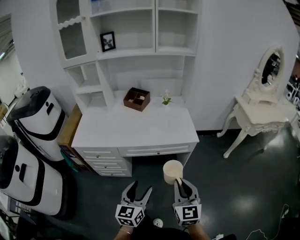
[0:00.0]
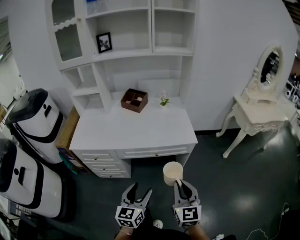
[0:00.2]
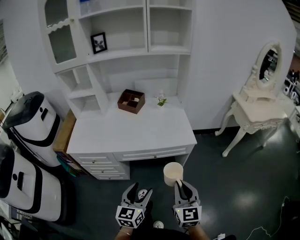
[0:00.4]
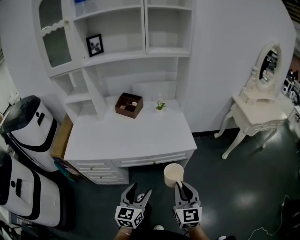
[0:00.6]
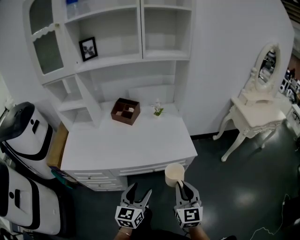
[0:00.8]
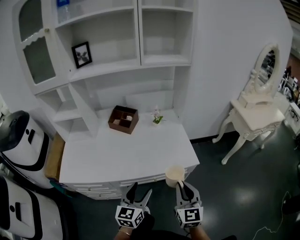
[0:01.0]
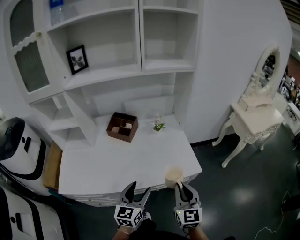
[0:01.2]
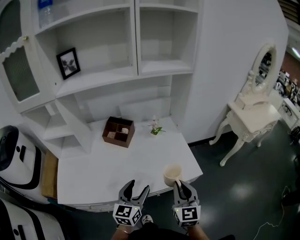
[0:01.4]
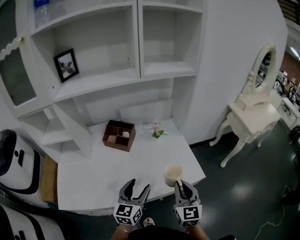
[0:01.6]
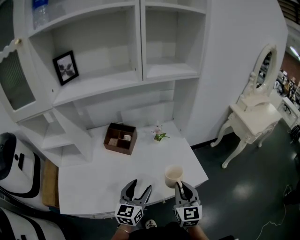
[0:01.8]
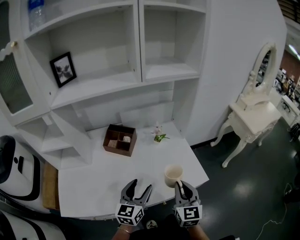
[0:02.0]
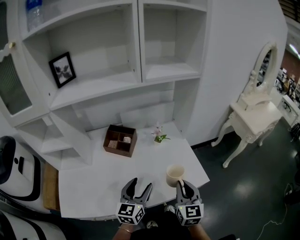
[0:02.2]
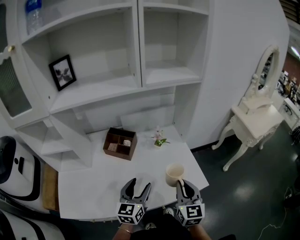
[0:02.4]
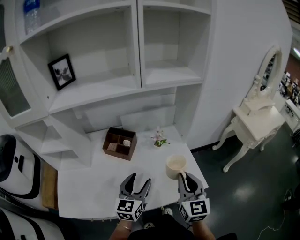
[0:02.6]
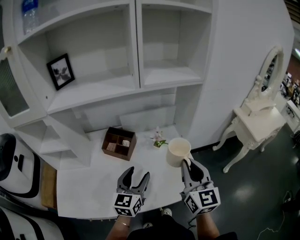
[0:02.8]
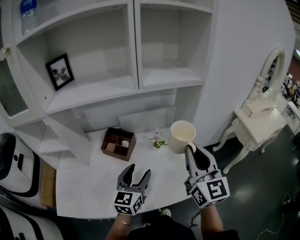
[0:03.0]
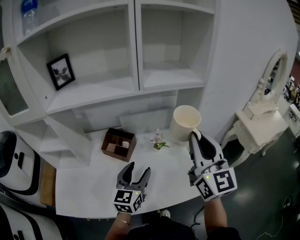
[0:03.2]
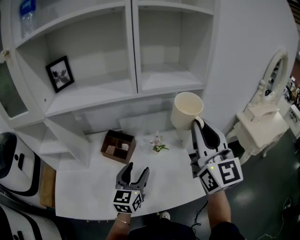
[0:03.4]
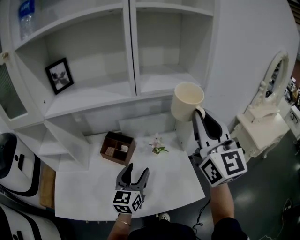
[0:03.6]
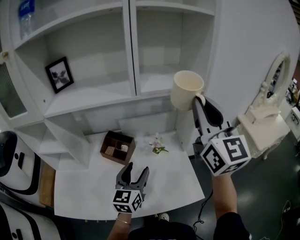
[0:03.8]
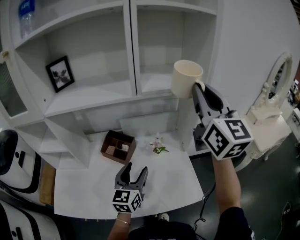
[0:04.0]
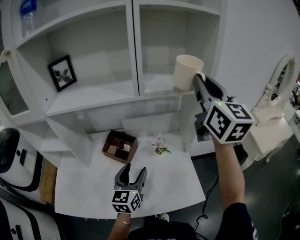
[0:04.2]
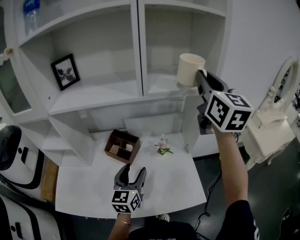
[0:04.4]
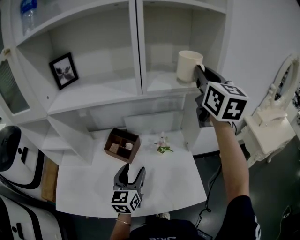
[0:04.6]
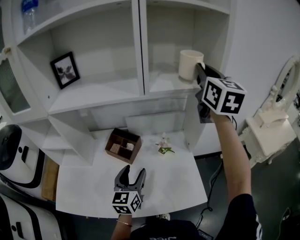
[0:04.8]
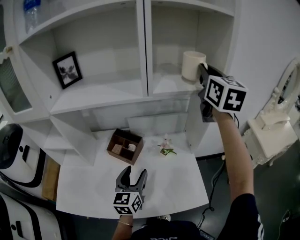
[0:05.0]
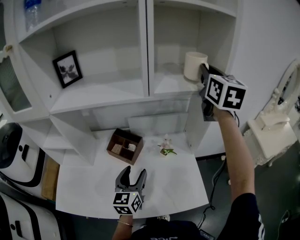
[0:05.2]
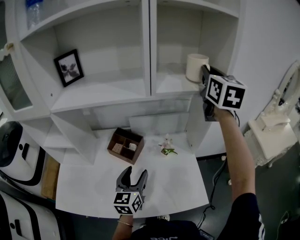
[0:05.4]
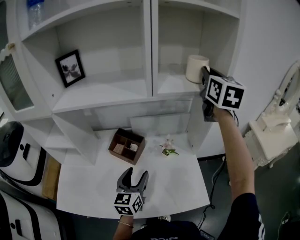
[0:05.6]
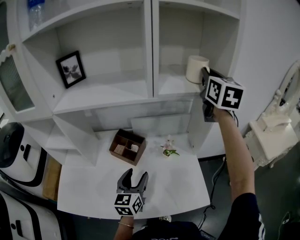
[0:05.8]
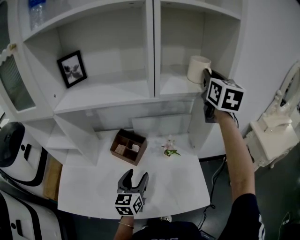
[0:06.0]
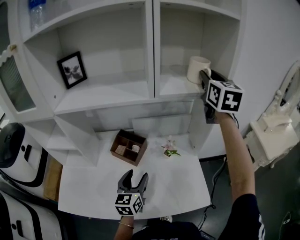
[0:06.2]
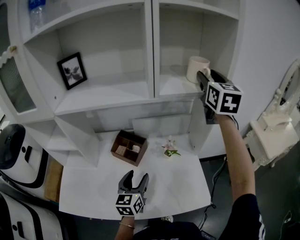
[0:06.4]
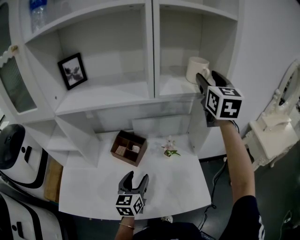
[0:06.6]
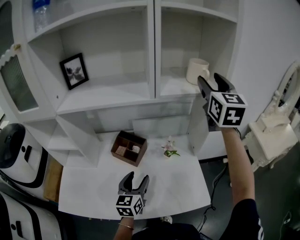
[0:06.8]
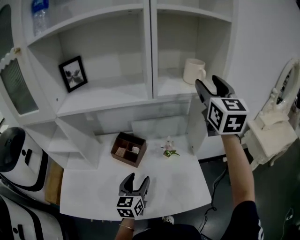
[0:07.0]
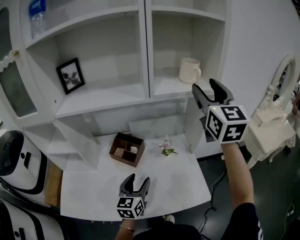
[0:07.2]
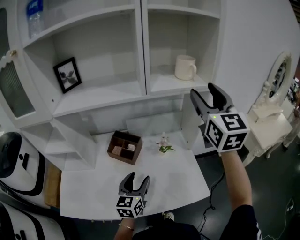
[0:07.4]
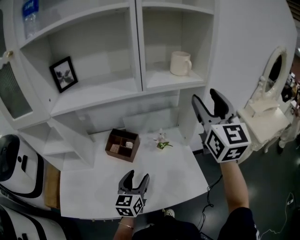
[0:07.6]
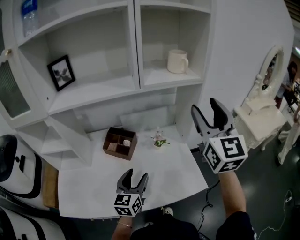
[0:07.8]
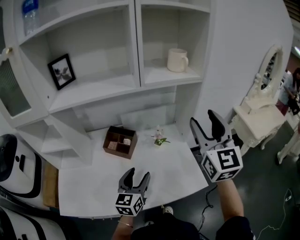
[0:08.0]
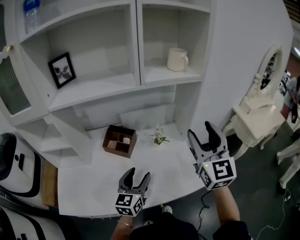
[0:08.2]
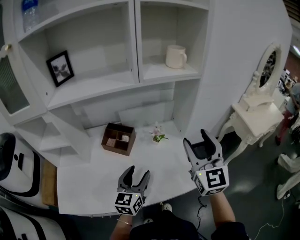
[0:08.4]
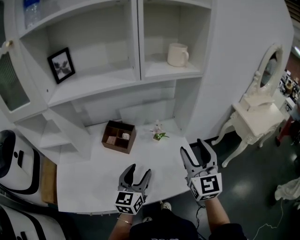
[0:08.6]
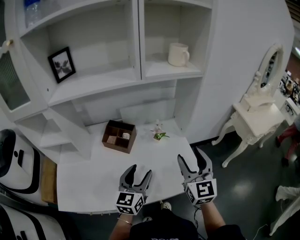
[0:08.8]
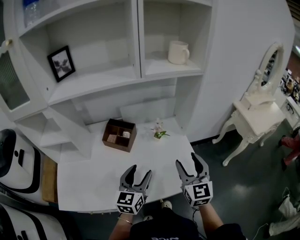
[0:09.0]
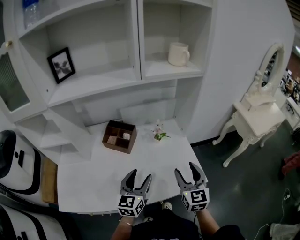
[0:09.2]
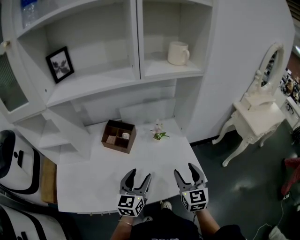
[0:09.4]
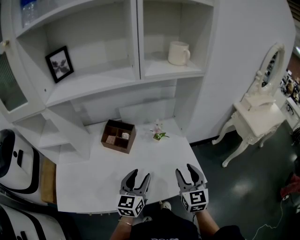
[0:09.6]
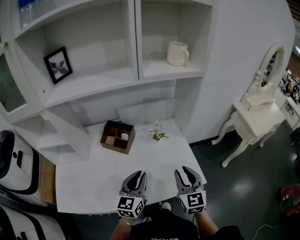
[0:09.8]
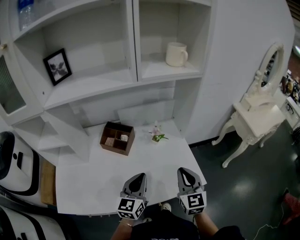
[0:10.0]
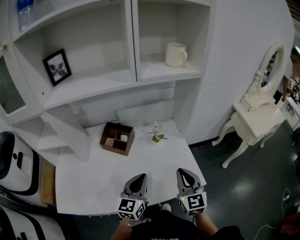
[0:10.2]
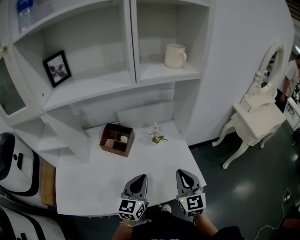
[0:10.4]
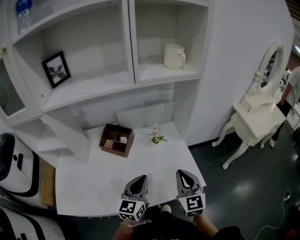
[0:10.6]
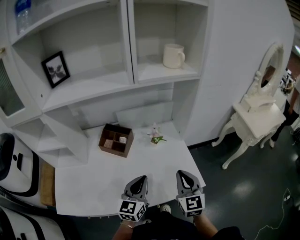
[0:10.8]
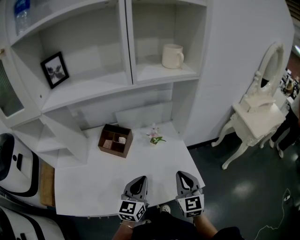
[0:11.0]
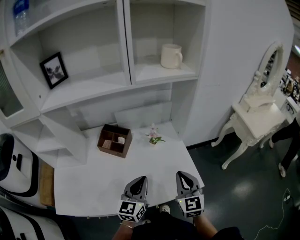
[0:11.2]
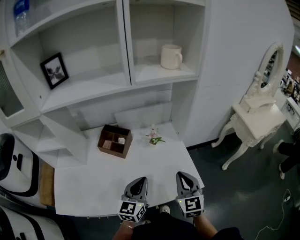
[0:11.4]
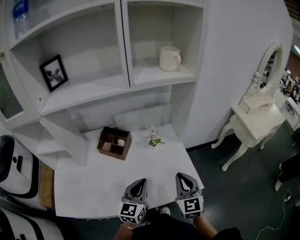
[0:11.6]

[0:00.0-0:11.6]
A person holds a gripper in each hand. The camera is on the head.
0:00.0 to 0:01.4: Both grippers move forward, approximately 30 cm.
0:01.4 to 0:02.8: The grippers both shift forward and upward by roughly 15 cm.
0:02.8 to 0:04.4: The left gripper goes approximately 5 cm forward; the right gripper is displaced upward and forward by about 35 cm.
0:04.4 to 0:05.8: The right gripper travels forward by approximately 10 cm.
0:05.8 to 0:07.2: The right gripper goes roughly 10 cm backward, and opens up.
0:07.2 to 0:08.8: The left gripper ends up roughly 5 cm from where it was; the right gripper is displaced downward and backward by about 30 cm.
0:08.8 to 0:10.2: The left gripper closes its fingers. Meanwhile the right gripper is displaced downward by some 10 cm, and closes.
0:10.2 to 0:11.6: The grippers make only small movements.

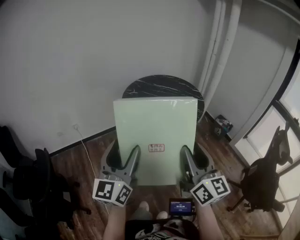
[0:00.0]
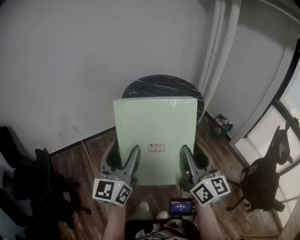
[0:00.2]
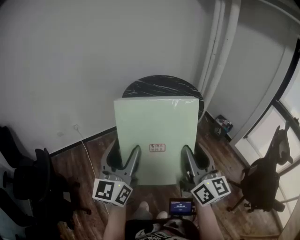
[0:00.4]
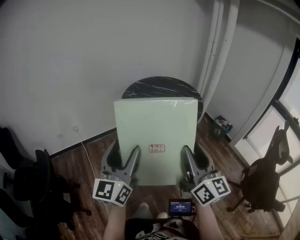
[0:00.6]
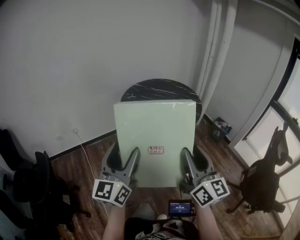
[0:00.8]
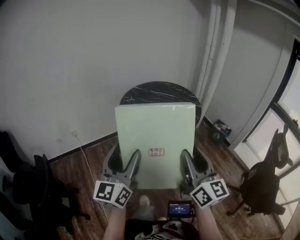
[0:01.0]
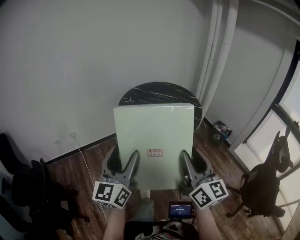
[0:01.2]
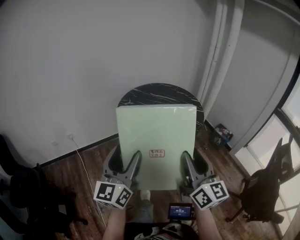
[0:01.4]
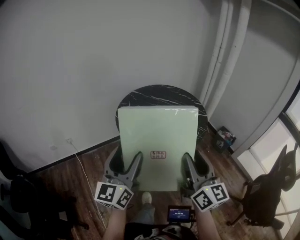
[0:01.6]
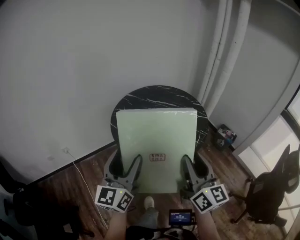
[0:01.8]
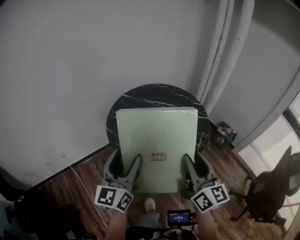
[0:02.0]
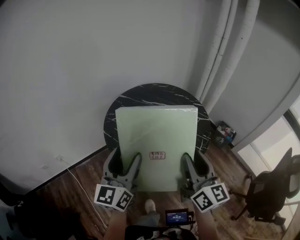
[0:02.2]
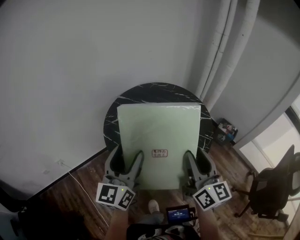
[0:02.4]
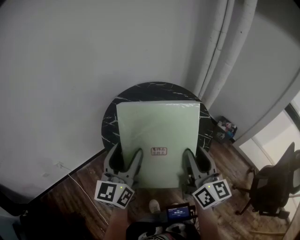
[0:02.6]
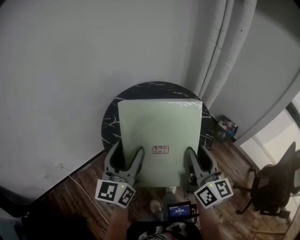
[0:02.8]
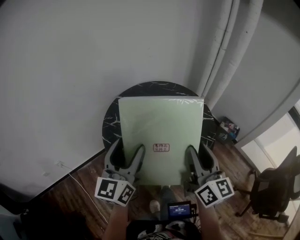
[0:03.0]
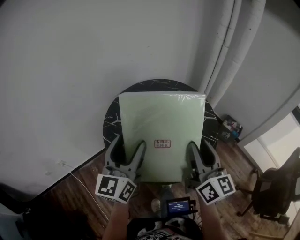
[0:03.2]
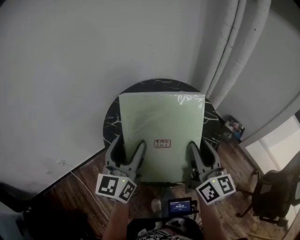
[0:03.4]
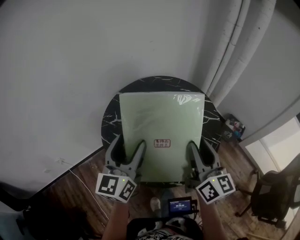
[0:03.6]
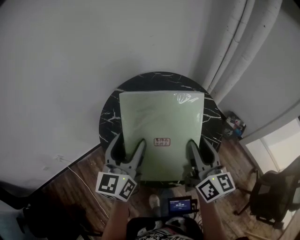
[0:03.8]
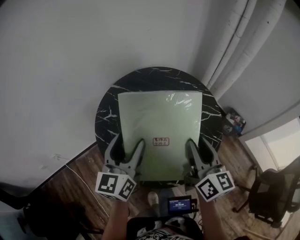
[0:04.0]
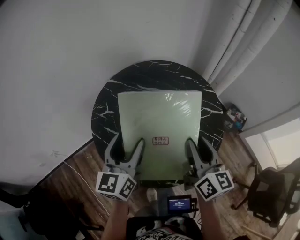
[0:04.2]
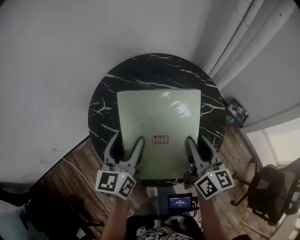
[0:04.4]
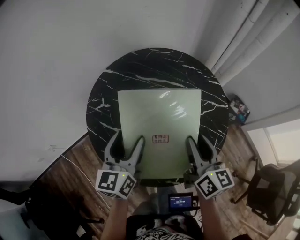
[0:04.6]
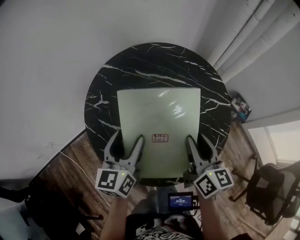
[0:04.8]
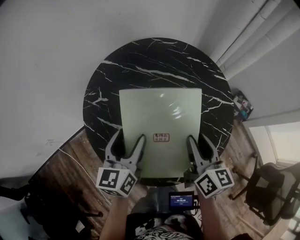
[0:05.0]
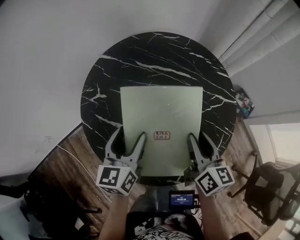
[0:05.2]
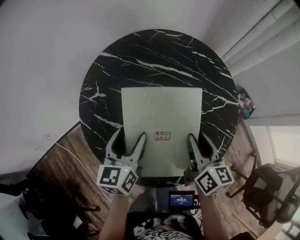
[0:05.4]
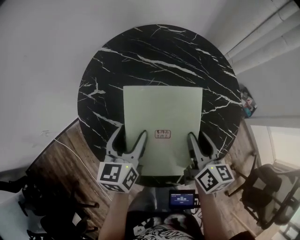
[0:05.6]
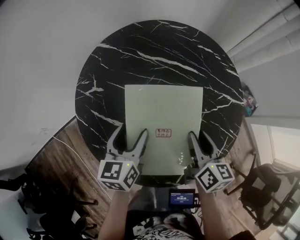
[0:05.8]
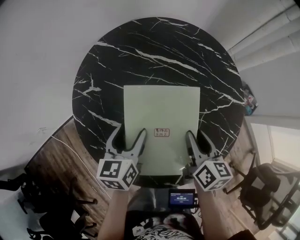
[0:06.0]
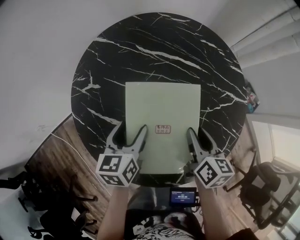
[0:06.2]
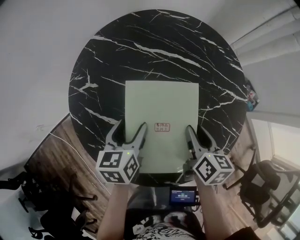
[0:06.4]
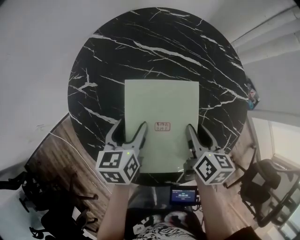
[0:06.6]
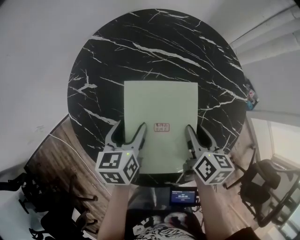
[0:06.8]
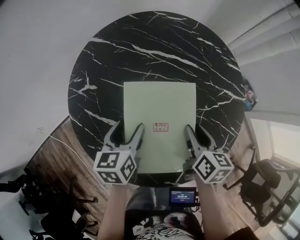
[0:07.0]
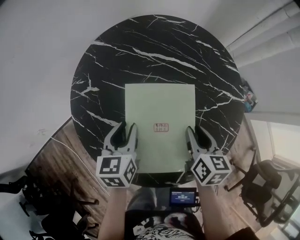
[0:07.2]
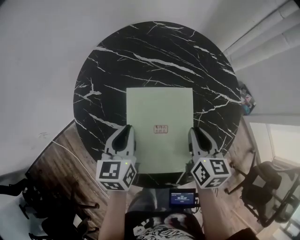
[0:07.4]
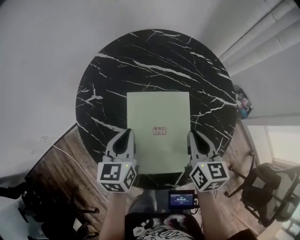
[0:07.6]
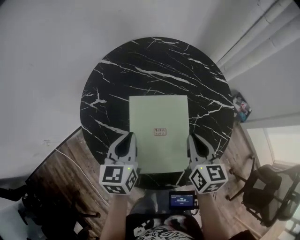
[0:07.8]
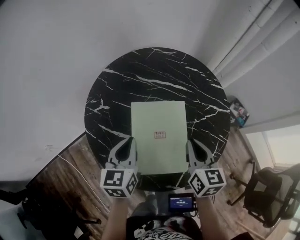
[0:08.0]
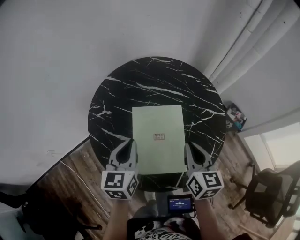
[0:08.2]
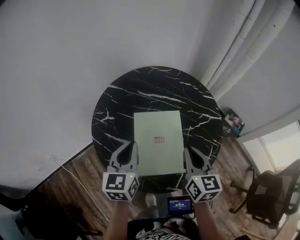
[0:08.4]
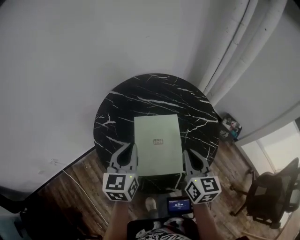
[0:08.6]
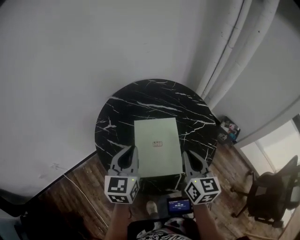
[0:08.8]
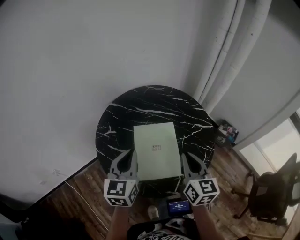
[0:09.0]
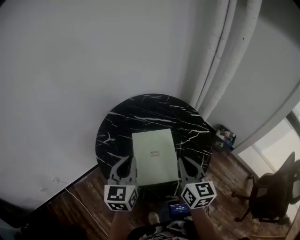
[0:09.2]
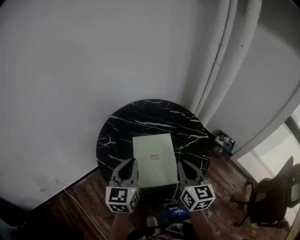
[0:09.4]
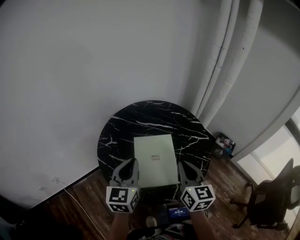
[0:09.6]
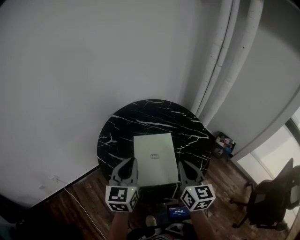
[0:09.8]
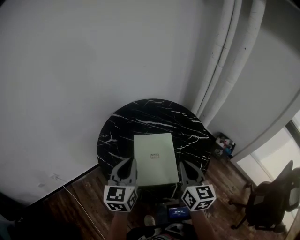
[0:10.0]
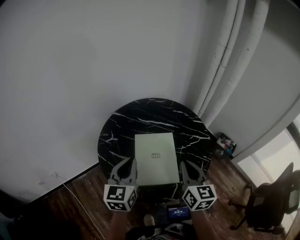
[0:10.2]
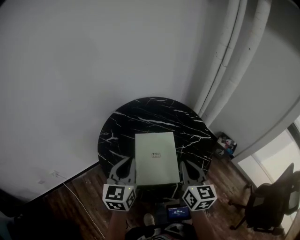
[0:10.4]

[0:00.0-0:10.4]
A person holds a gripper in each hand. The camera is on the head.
0:00.0 to 0:01.4: Both grippers travel together forward, approximately 10 cm.
0:01.4 to 0:03.0: Both grippers travel together forward, roughly 35 cm.
0:03.0 to 0:04.4: The left gripper moves downward and forward, some 20 cm. Meanwhile the right gripper is displaced forward and downward by about 20 cm.
0:04.4 to 0:06.0: The two grippers go about 15 cm downward. The left gripper turns by about 20 degrees; the right gripper turns by approximately 20 degrees.
0:06.0 to 0:07.4: The left gripper closes.
0:07.4 to 0:09.0: The grippers both shift upward and backward by about 20 cm. The right gripper changes its angle by approximately 20 degrees. The left gripper swivels approximately 20 degrees.
0:09.0 to 0:10.4: The grippers stay close to where they were, moving slightly.

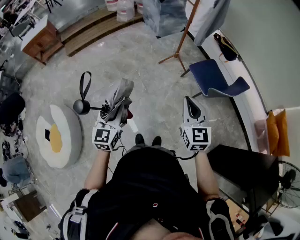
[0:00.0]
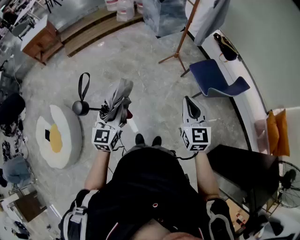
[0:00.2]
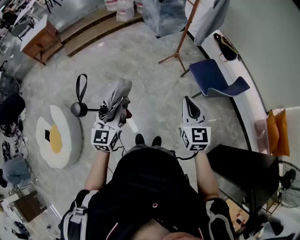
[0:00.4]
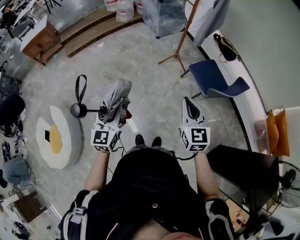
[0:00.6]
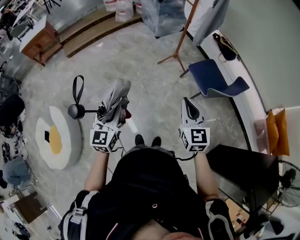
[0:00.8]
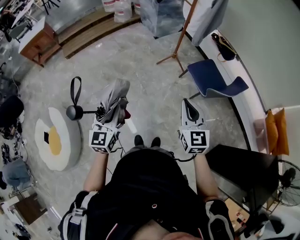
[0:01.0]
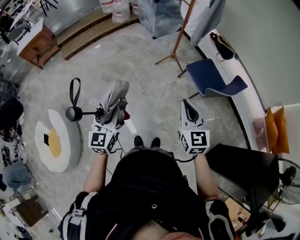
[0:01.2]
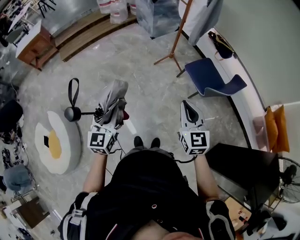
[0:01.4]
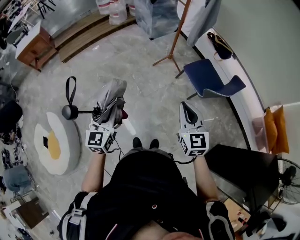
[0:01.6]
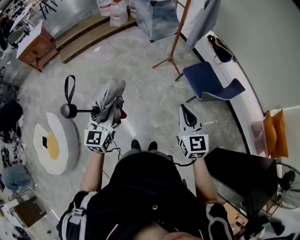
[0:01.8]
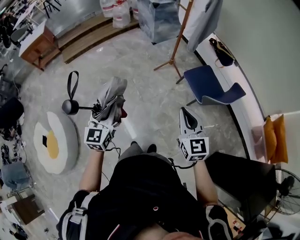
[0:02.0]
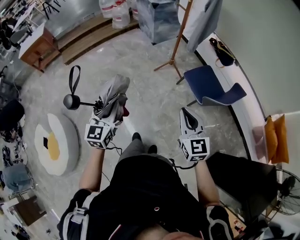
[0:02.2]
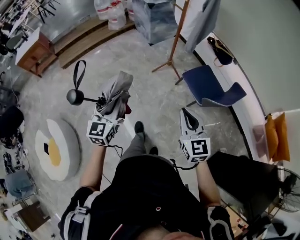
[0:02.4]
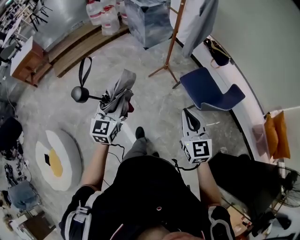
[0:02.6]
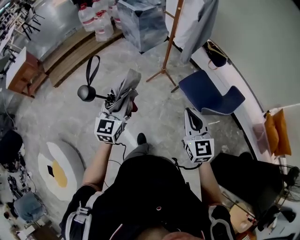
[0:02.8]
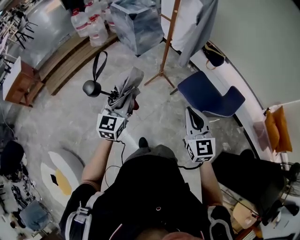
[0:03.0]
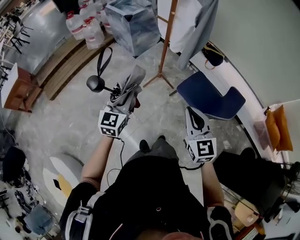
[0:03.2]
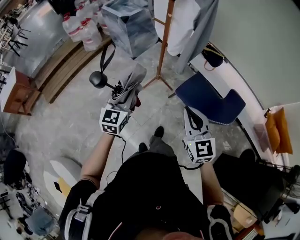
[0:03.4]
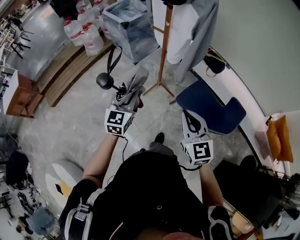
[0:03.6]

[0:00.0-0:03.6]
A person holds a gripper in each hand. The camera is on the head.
0:00.0 to 0:01.8: The grippers stay close to where they were, moving slightly.
0:01.8 to 0:03.6: The two grippers go approximately 40 cm forward. The left gripper swivels approximately 20 degrees.
